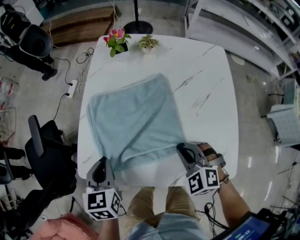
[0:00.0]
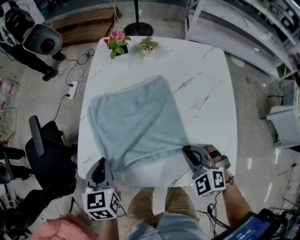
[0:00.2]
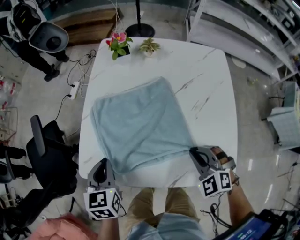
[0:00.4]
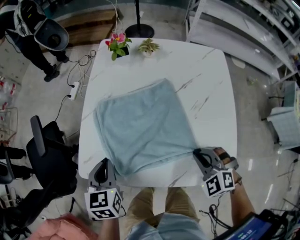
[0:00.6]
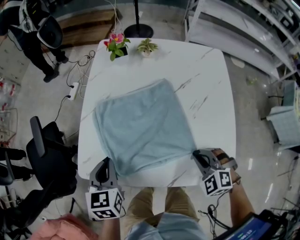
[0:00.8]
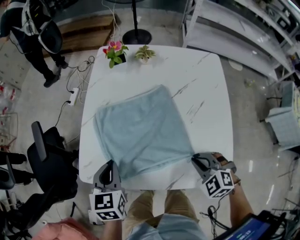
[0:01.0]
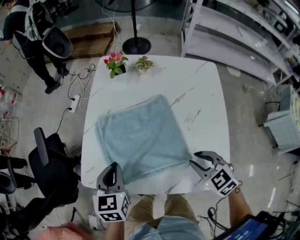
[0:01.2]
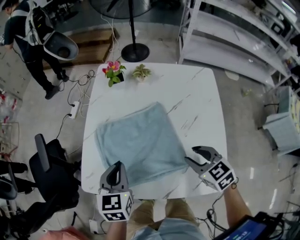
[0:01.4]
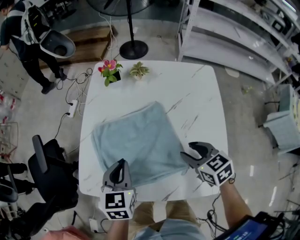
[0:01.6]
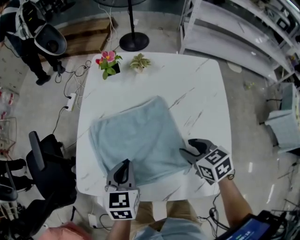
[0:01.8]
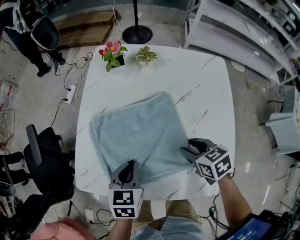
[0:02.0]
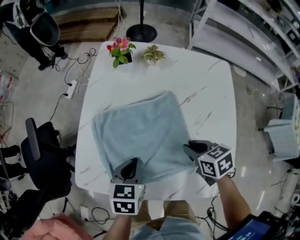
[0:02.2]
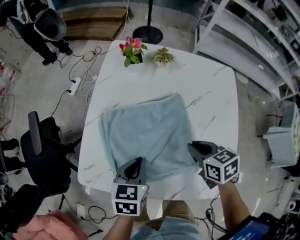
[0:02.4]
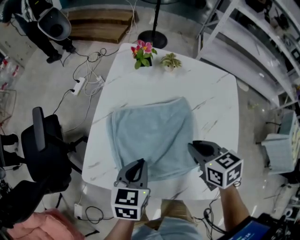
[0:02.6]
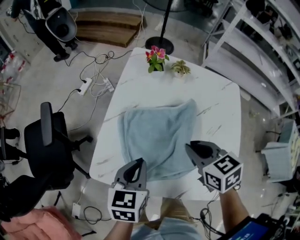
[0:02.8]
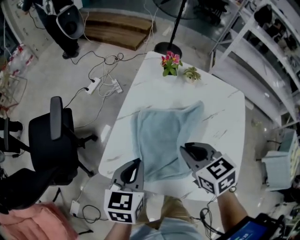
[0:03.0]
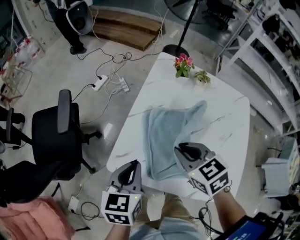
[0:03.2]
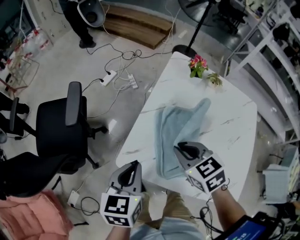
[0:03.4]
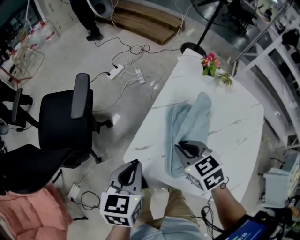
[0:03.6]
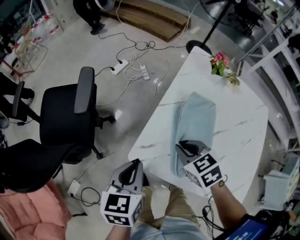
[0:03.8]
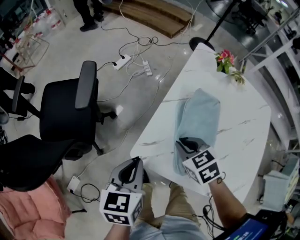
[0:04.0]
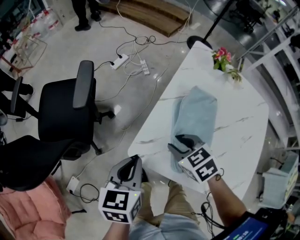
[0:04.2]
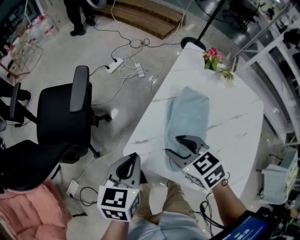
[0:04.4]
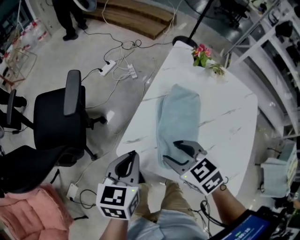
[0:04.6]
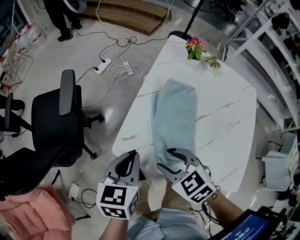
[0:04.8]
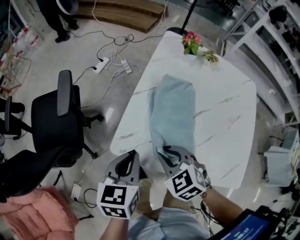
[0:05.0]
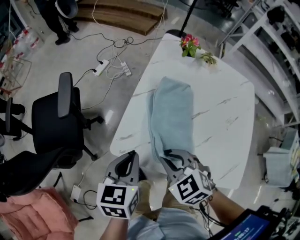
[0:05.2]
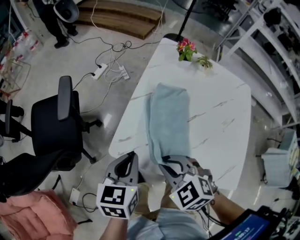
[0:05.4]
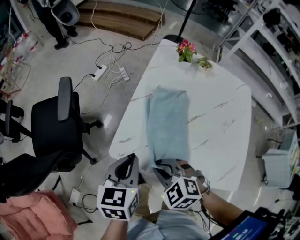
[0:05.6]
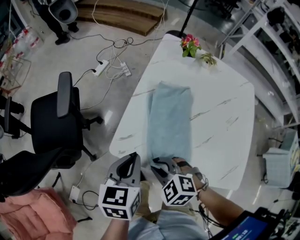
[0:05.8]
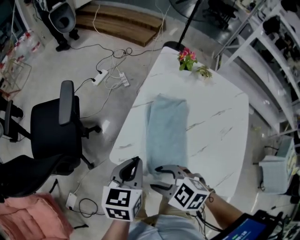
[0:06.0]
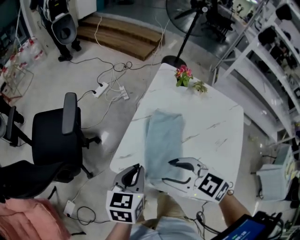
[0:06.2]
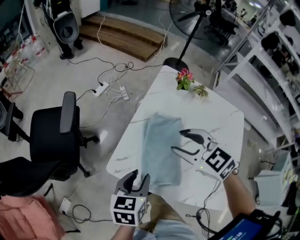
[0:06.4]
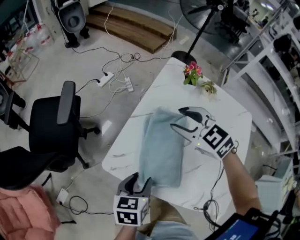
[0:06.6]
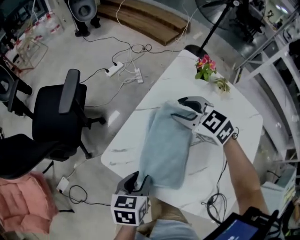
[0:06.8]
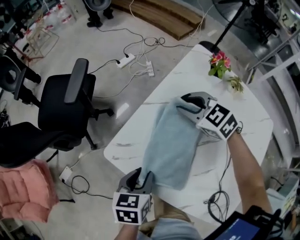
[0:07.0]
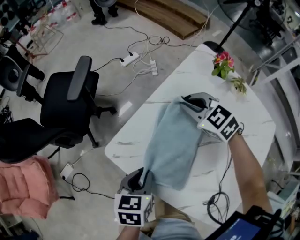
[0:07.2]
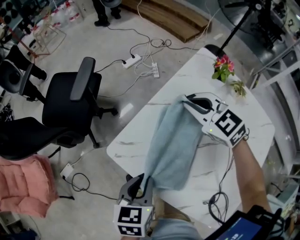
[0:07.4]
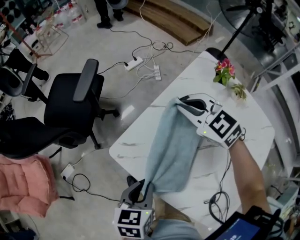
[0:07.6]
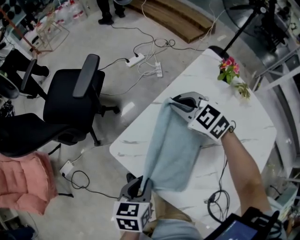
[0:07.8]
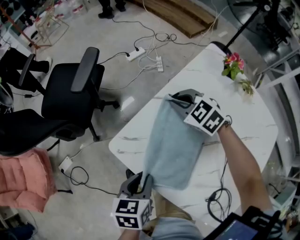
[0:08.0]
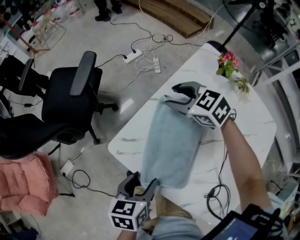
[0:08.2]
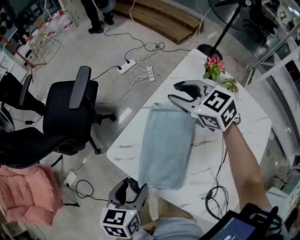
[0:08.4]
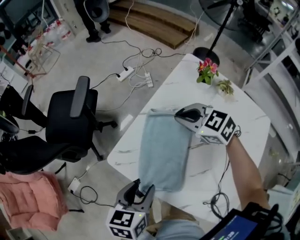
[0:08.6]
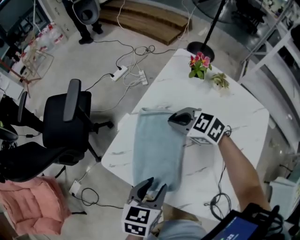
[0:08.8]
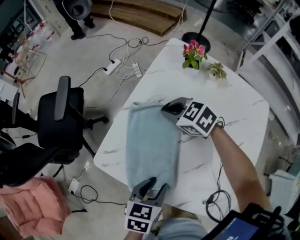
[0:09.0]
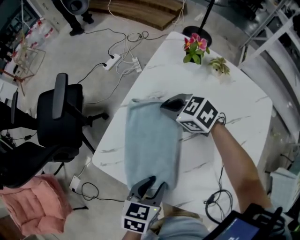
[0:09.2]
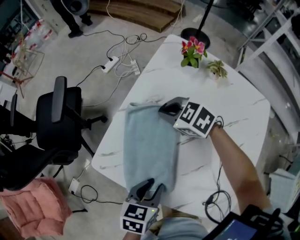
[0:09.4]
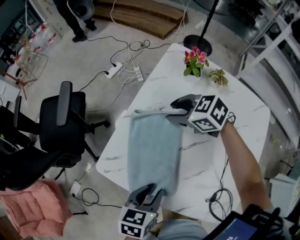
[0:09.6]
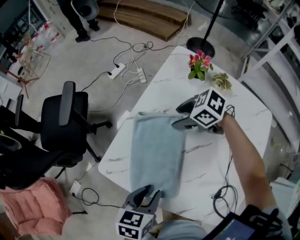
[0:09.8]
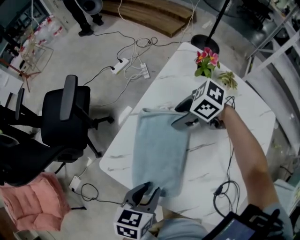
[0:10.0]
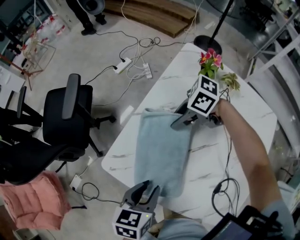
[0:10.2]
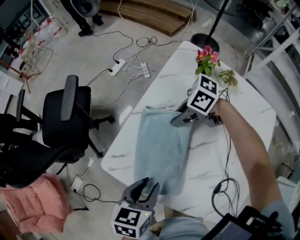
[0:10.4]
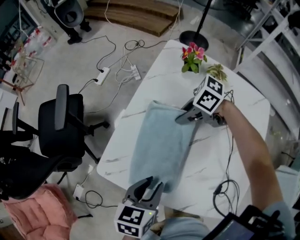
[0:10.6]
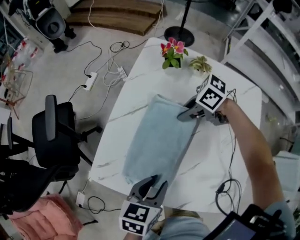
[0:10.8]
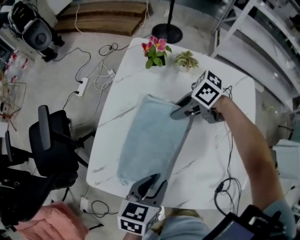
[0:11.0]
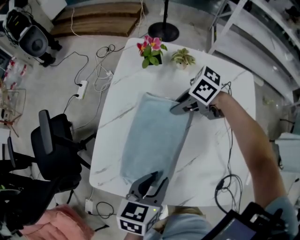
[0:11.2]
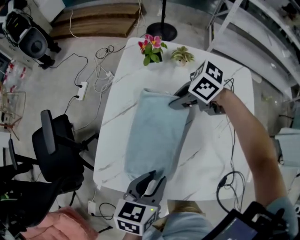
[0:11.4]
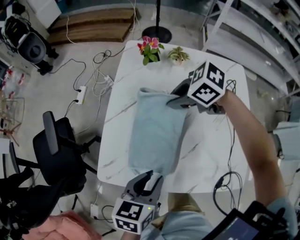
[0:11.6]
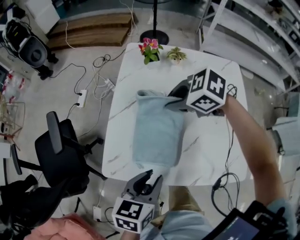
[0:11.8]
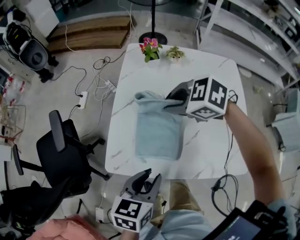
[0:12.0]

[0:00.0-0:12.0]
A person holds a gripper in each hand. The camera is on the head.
0:00.0 to 0:01.6: Both grippers move to the right, roughly 10 cm. The right gripper rolls clockwise, seen from behind, by roughly 50 degrees, and opens.
0:01.6 to 0:03.0: The right gripper is displaced to the left by some 20 cm, and closes its fingers. The left gripper travels to the left by some 10 cm.
0:03.0 to 0:04.4: Both grippers move to the left, some 15 cm. The right gripper swivels some 20 degrees, and opens.
0:04.4 to 0:06.0: The right gripper moves backward, some 10 cm, and closes, then opens again, while the left gripper is displaced to the right by some 5 cm.
0:06.0 to 0:07.6: The left gripper heads backward, covering roughly 5 cm, swivels about 30 degrees, and opens, then closes again; the right gripper is displaced forward and to the right by approximately 30 cm, swivels about 30 degrees, and closes up.
0:07.6 to 0:09.0: The left gripper travels to the right by approximately 10 cm, rotates approximately 20 degrees, and opens up. Meanwhile the right gripper goes up and down, about 10 cm each way, reversing 2 times, rotates roughly 20 degrees, and opens, then closes again.
0:09.0 to 0:10.4: The left gripper ends up some 5 cm from where it was. Meanwhile the right gripper swivels approximately 40 degrees, and opens, then closes again.
0:10.4 to 0:12.0: The right gripper is displaced upward by about 15 cm, and changes its angle by some 40 degrees, while the left gripper ends up roughly 5 cm from where it was, and turns by approximately 30 degrees.

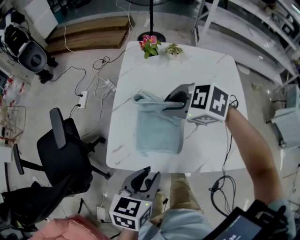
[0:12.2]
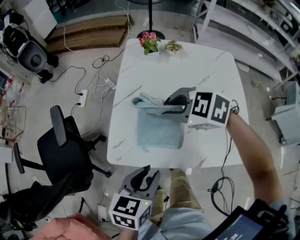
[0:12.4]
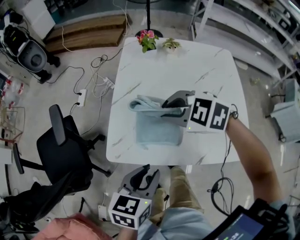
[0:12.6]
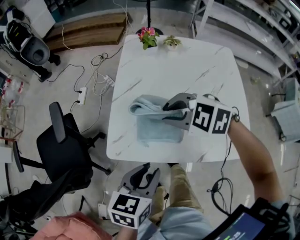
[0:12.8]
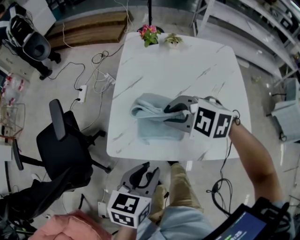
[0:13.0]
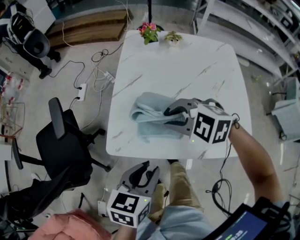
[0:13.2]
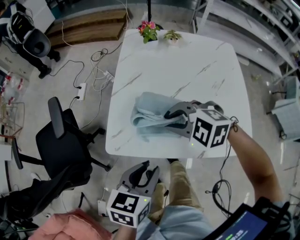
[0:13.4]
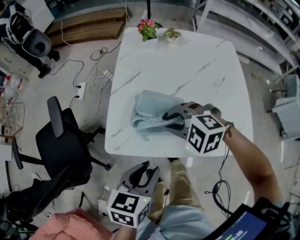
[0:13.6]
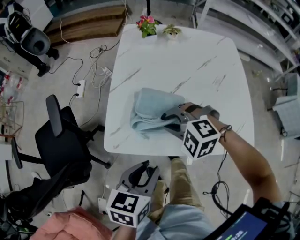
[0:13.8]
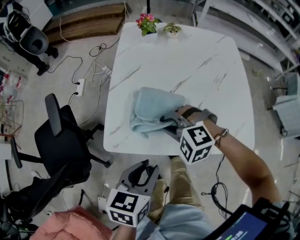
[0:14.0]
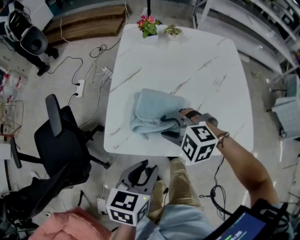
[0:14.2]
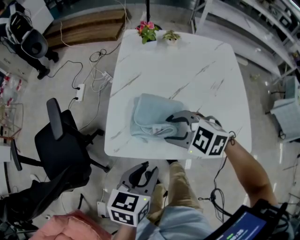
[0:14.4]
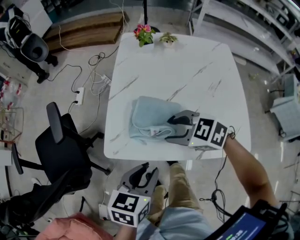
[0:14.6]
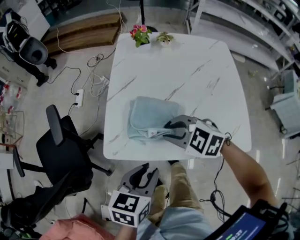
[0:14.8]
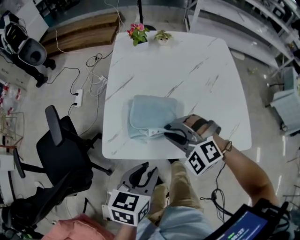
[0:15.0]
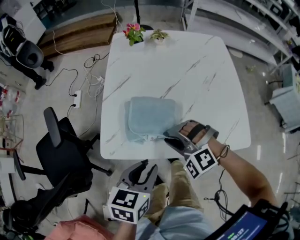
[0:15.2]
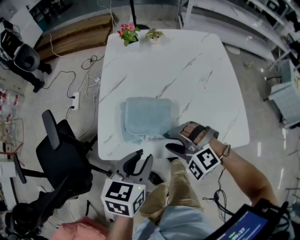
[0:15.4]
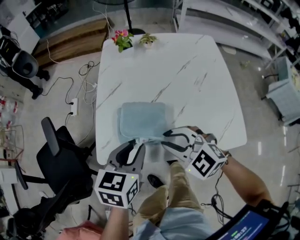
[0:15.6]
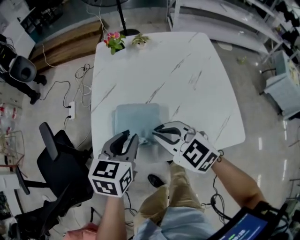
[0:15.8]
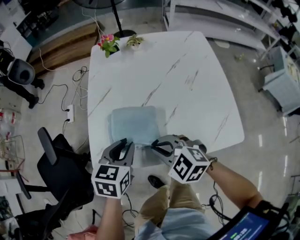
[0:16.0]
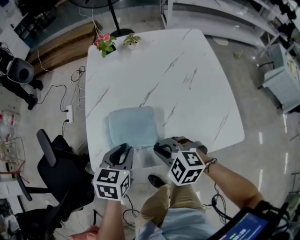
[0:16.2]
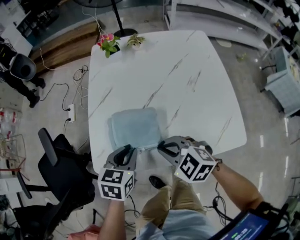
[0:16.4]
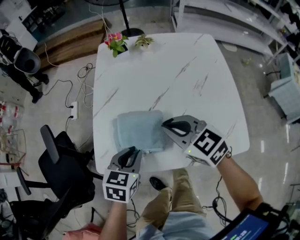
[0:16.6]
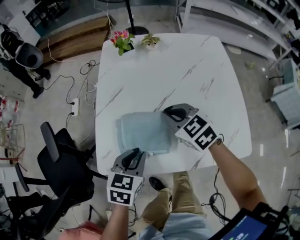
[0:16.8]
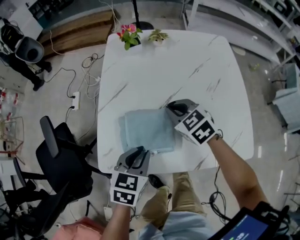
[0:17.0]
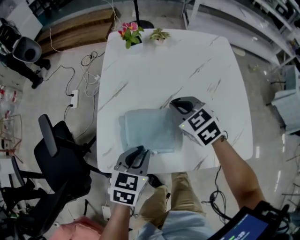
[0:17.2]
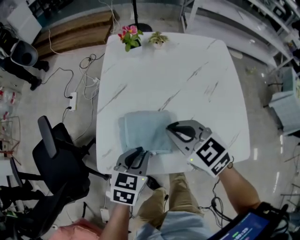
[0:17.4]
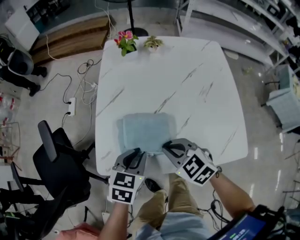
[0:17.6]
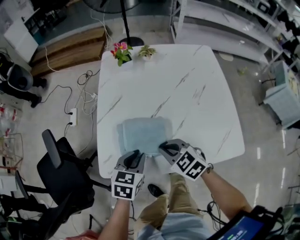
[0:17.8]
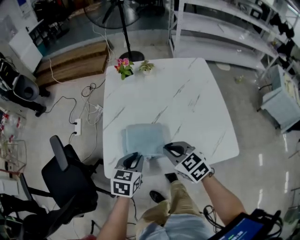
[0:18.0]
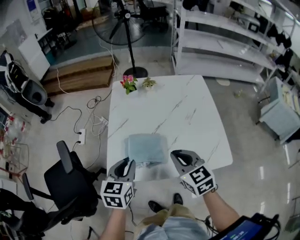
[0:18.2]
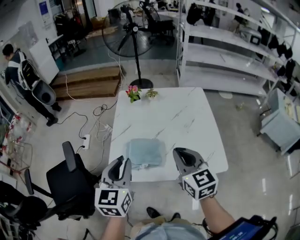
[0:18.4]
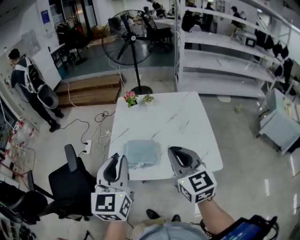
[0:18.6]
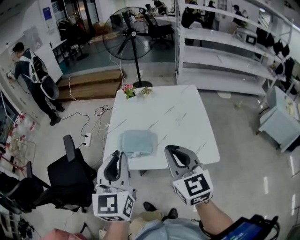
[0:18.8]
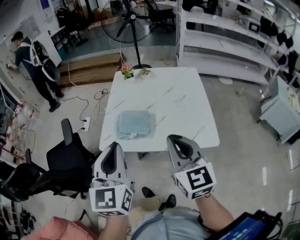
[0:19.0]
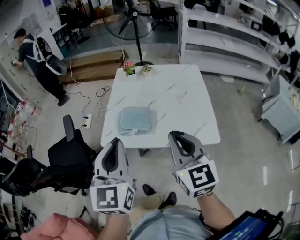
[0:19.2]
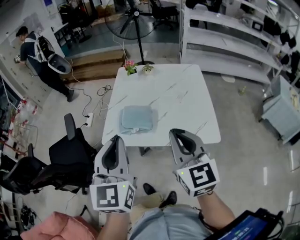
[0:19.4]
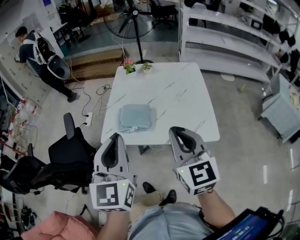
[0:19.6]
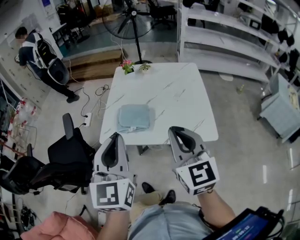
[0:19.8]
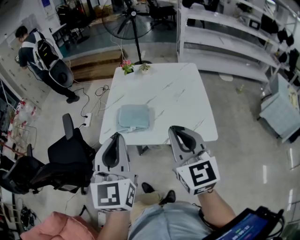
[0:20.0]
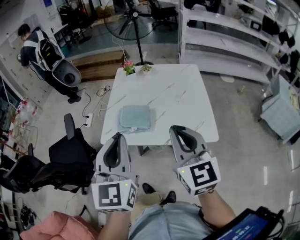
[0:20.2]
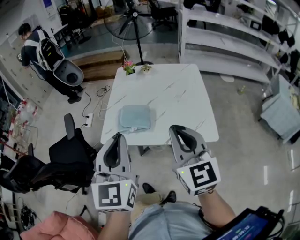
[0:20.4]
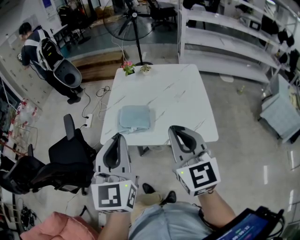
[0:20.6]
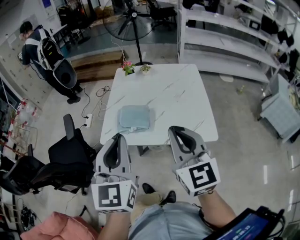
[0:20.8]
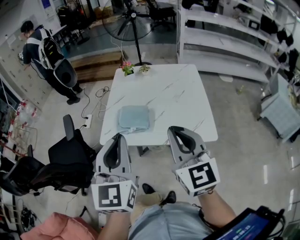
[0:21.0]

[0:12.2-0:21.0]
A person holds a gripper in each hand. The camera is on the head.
0:12.2 to 0:13.6: The right gripper is displaced backward and downward by about 10 cm, and turns by roughly 20 degrees.
0:13.6 to 0:15.2: The right gripper shifts roughly 5 cm backward, changes its angle by about 20 degrees, and opens, then closes again.
0:15.2 to 0:16.6: The left gripper shifts about 10 cm forward. Meanwhile the right gripper moves upward and forward, approximately 10 cm, rotates around the line of its fingers by roughly 60 degrees, clockwise from behind, and closes its fingers.
0:16.6 to 0:18.0: The right gripper moves about 10 cm forward and comes back.
0:18.0 to 0:19.6: Both grippers travel together upward and backward, approximately 30 cm. The right gripper points its fingers roughly 30 degrees further upward; the left gripper points its fingers approximately 40 degrees further upward.
0:19.6 to 0:21.0: The grippers stay close to where they were, moving slightly.

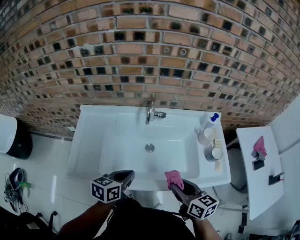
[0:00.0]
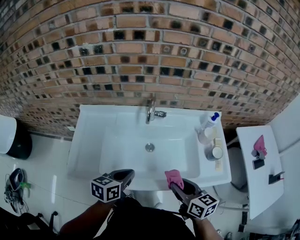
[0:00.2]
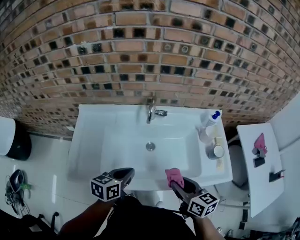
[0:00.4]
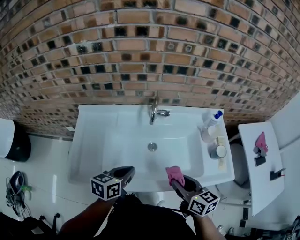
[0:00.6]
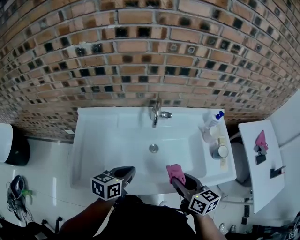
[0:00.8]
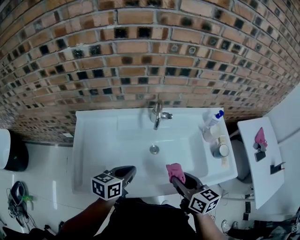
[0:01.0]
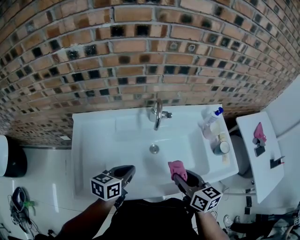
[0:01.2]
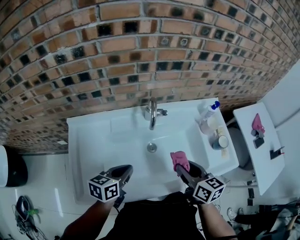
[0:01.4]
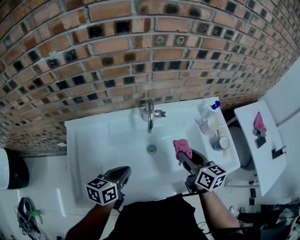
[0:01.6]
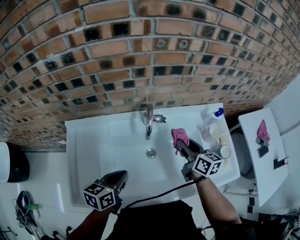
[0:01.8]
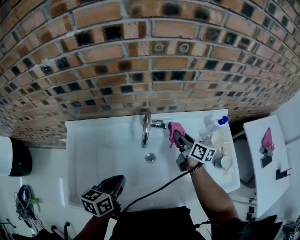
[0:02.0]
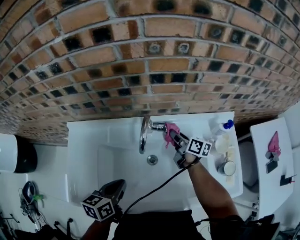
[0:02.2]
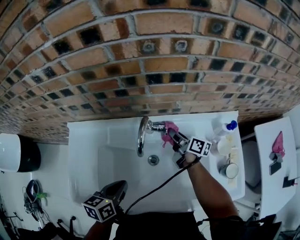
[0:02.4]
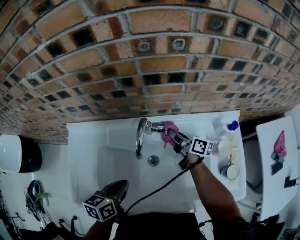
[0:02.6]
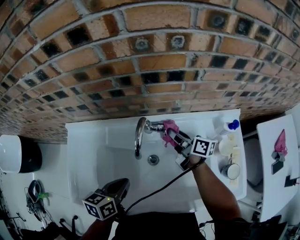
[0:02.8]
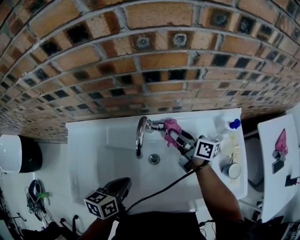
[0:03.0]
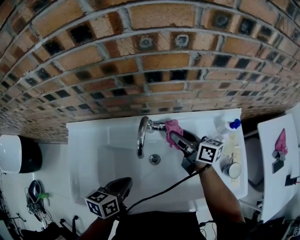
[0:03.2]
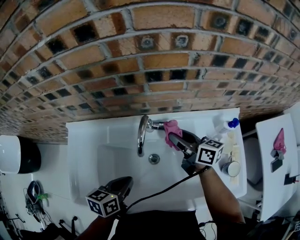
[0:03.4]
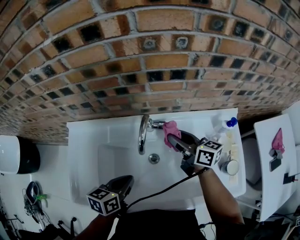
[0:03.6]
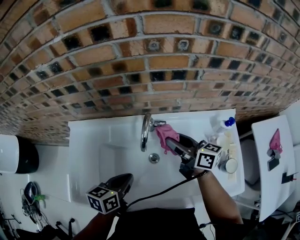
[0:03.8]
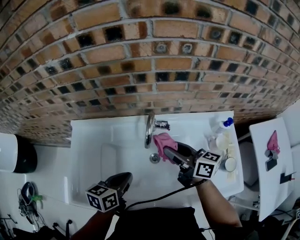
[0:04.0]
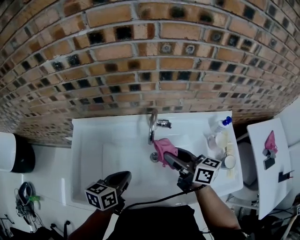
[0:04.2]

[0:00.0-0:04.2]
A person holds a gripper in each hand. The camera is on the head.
0:00.0 to 0:01.4: The grippers both shift forward and to the left by some 10 cm.
0:01.4 to 0:02.8: The right gripper moves forward, roughly 30 cm, and swivels some 50 degrees, while the left gripper shifts roughly 5 cm forward.
0:02.8 to 0:04.2: The right gripper is displaced backward and upward by some 20 cm, and changes its angle by some 30 degrees.
